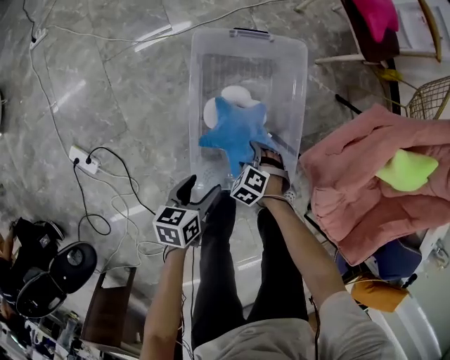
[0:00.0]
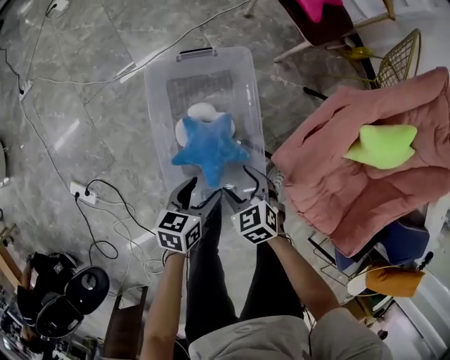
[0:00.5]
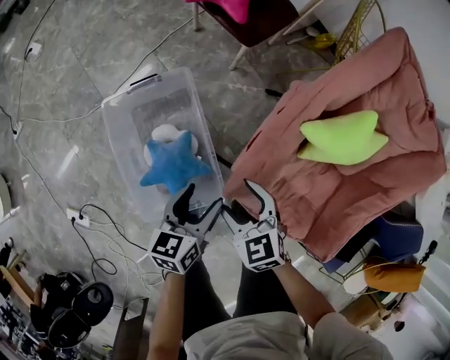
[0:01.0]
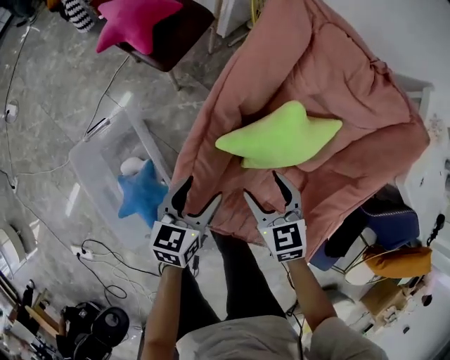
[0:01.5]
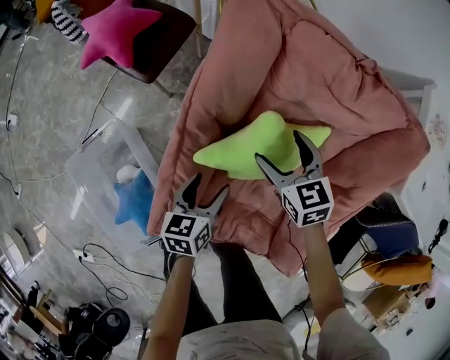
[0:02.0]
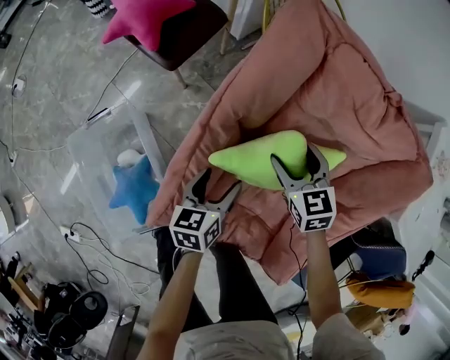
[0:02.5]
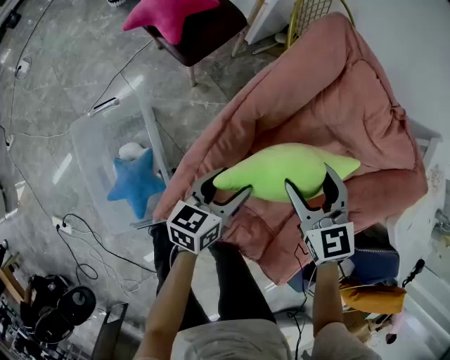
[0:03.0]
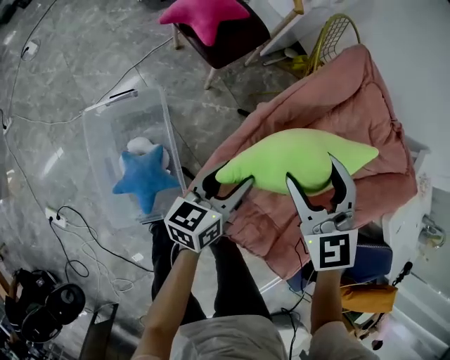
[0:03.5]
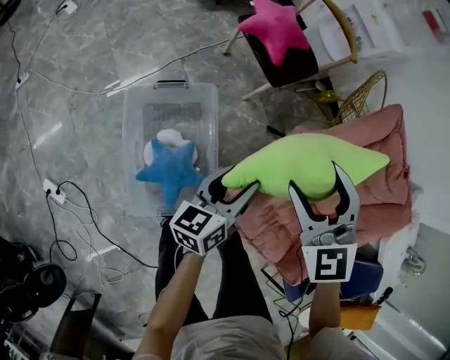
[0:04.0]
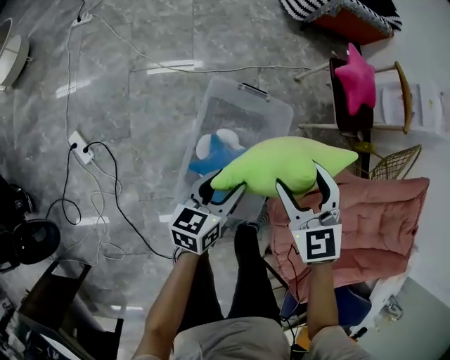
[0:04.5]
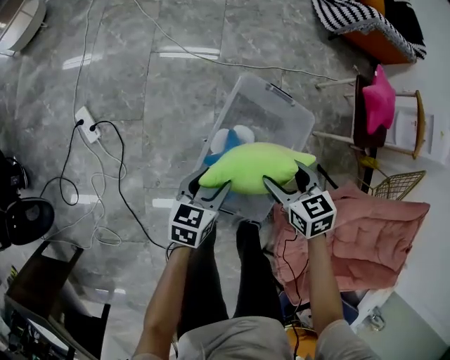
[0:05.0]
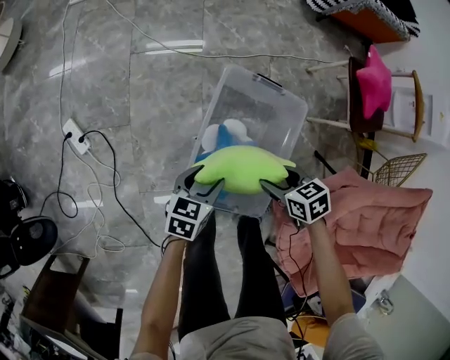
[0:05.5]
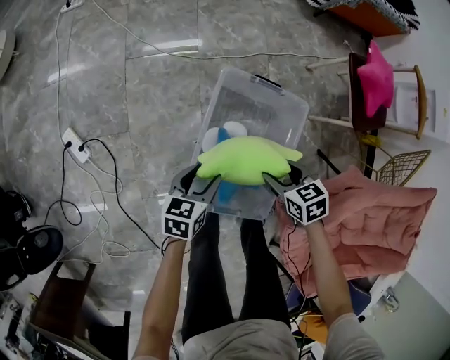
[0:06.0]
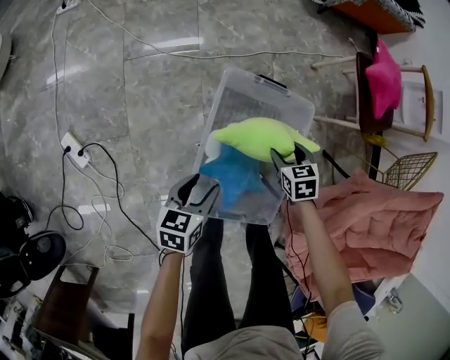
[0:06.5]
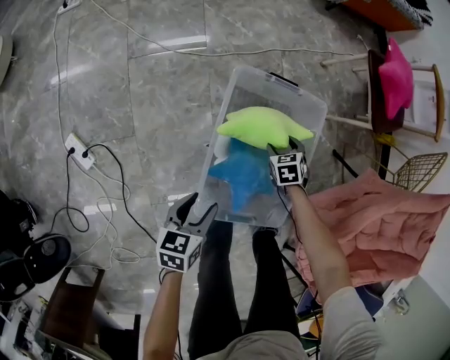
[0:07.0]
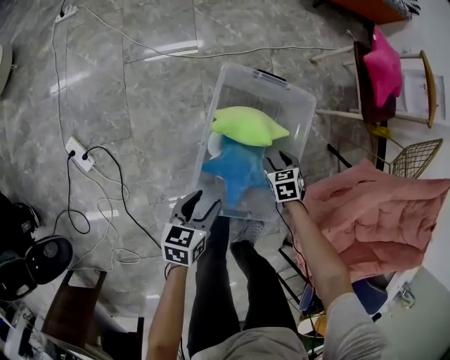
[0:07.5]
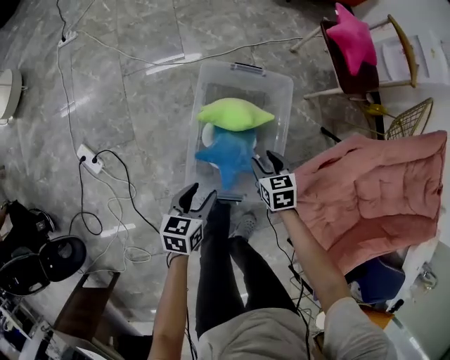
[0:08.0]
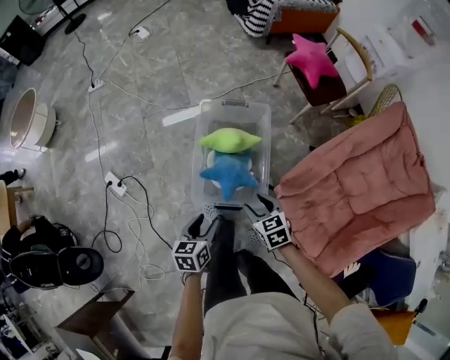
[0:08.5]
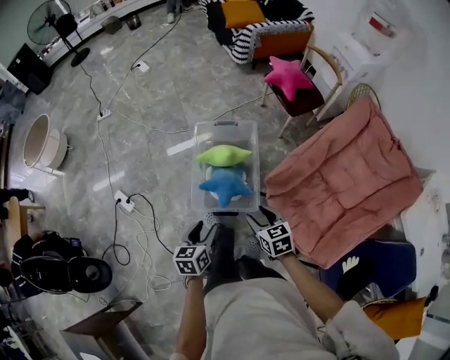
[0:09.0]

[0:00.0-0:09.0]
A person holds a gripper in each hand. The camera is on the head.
0:00.0 to 0:02.0: The pair of grippers is taken some 70 cm. The right gripper rotates around the line of its fingers by some 70 degrees, clockwise from behind, while the left gripper turns by about 30 degrees.
0:02.0 to 0:04.5: The pair of grippers is taken some 70 cm. The right gripper rotates around the line of its fingers by some 50 degrees, counterclockwise from behind; the left gripper rotates roughly 40 degrees.
0:04.5 to 0:07.0: The left gripper moves downward, about 20 cm, and rotates some 20 degrees, while the right gripper heads downward, covering about 40 cm, and changes its angle by about 40 degrees.
0:07.0 to 0:09.0: The left gripper travels upward, backward and to the right by approximately 40 cm. Meanwhile the right gripper shifts about 60 cm upward and backward, and turns by approximately 40 degrees.

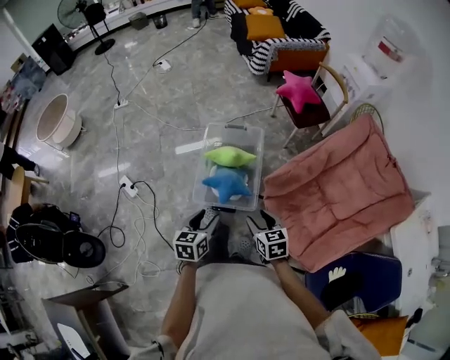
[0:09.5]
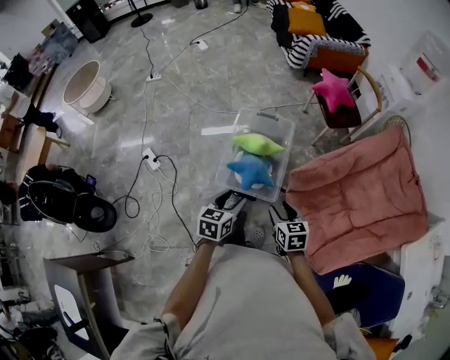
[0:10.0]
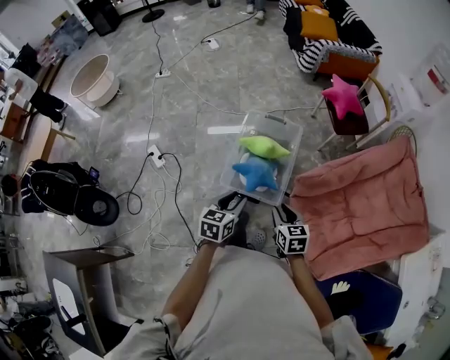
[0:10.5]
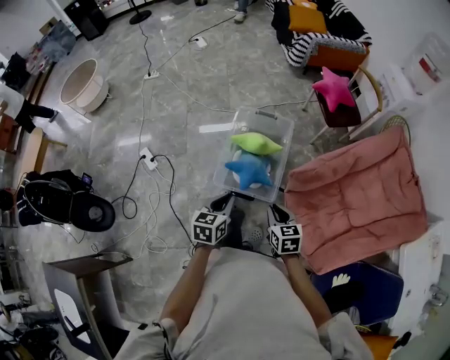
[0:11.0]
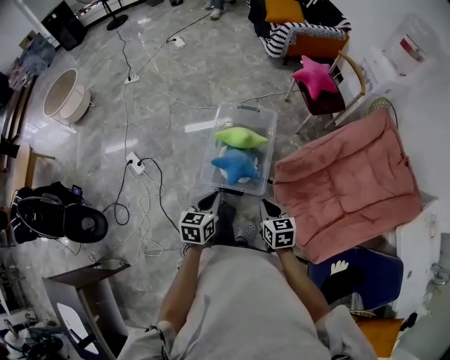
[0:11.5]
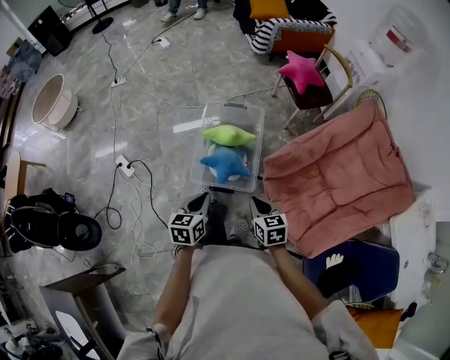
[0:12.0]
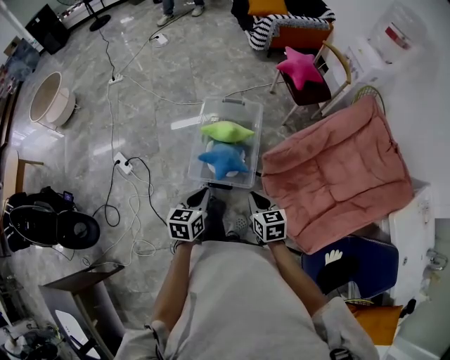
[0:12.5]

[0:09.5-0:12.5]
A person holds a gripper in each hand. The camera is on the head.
0:09.5 to 0:11.0: The left gripper closes up.
0:11.0 to 0:12.5: The grippers stay close to where they were, moving slightly.

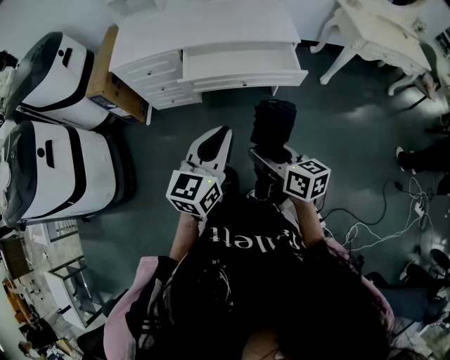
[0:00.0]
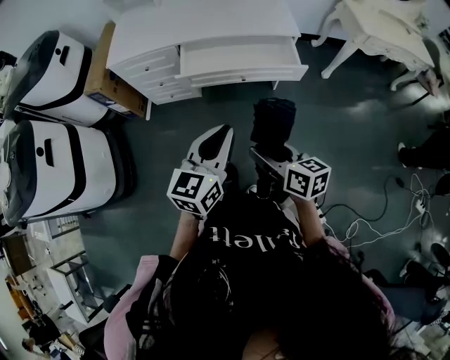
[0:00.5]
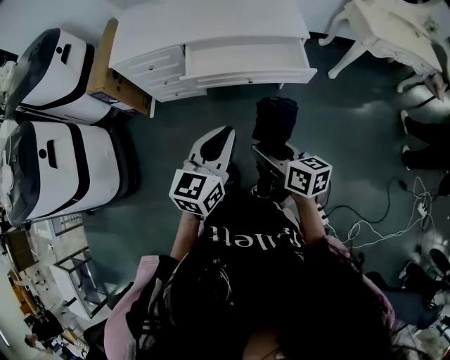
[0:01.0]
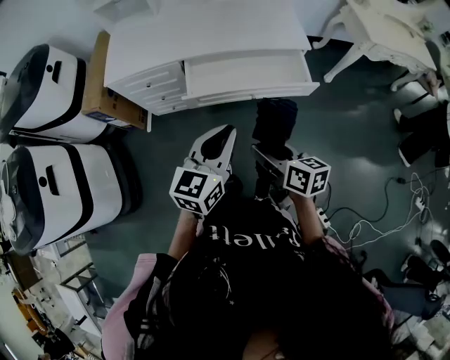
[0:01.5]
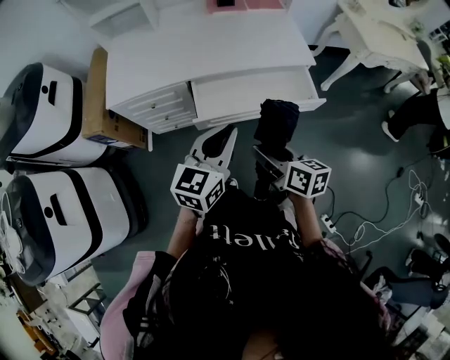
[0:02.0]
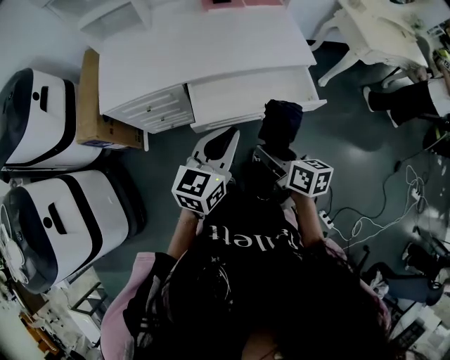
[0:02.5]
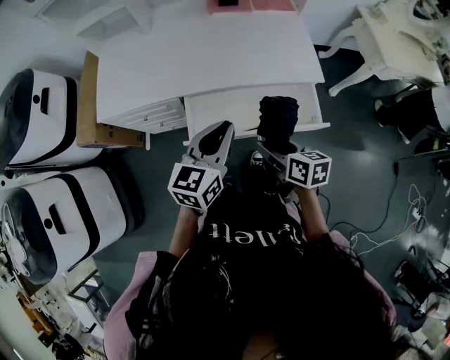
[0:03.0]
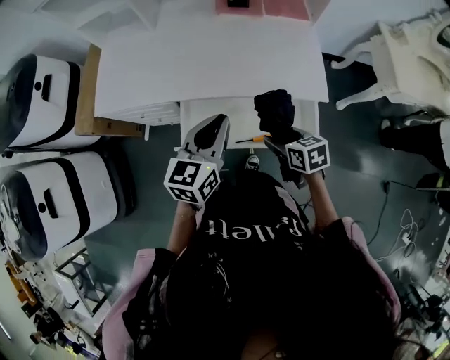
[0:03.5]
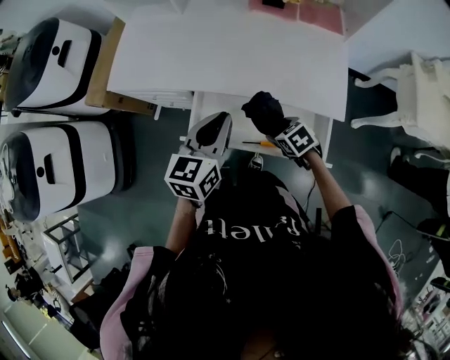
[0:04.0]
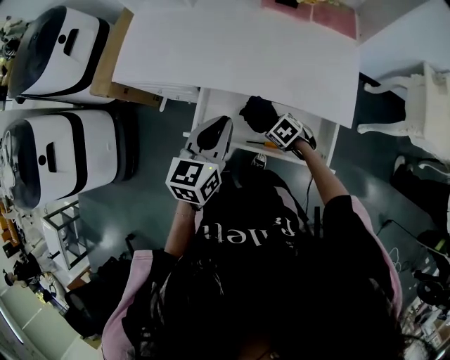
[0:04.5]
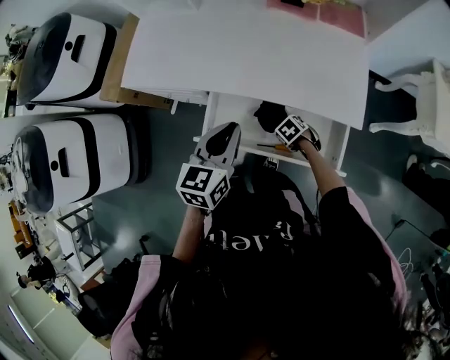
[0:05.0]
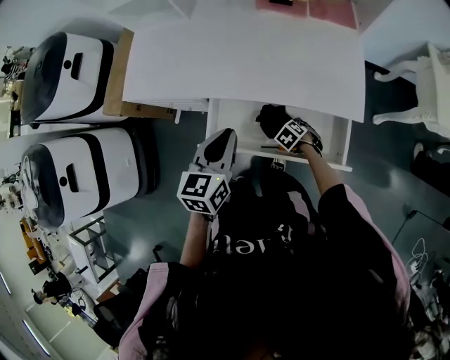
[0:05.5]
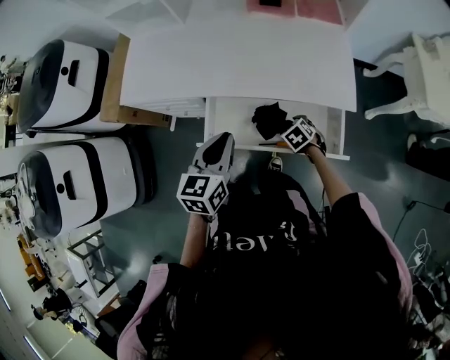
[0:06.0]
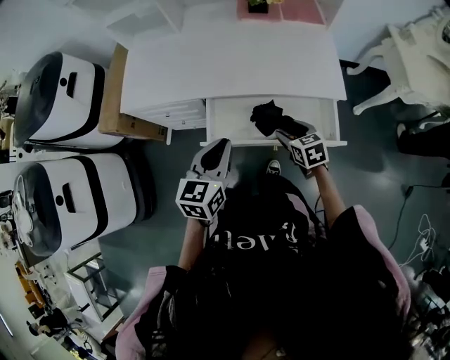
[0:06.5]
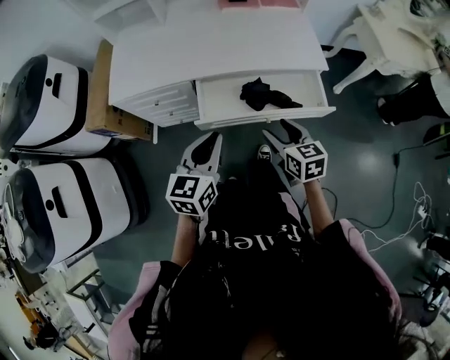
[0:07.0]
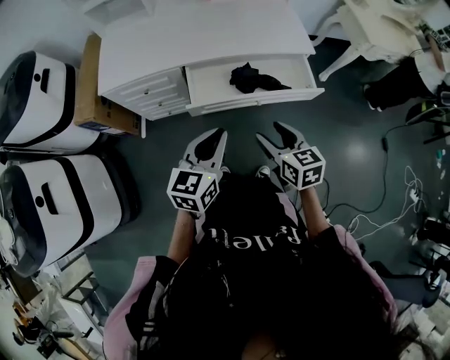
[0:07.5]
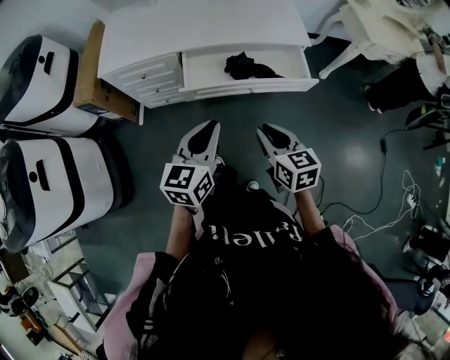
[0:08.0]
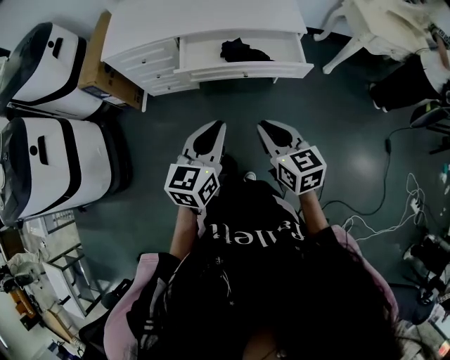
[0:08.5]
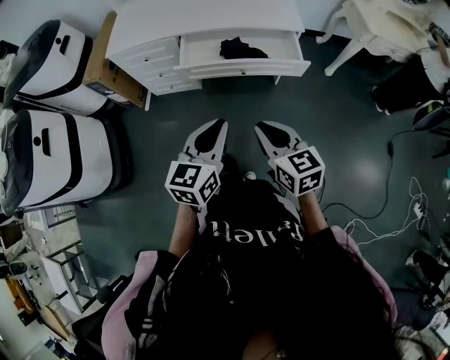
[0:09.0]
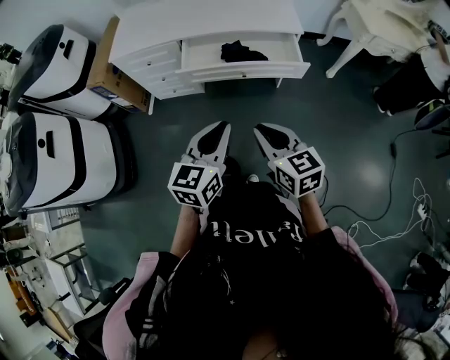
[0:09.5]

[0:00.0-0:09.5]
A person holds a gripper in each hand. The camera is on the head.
0:00.0 to 0:02.0: The grippers both shift forward by roughly 25 cm.
0:02.0 to 0:04.0: The left gripper changes place by roughly 25 cm, and rotates some 30 degrees, while the right gripper ends up roughly 35 cm from where it was, and tips its fingers downward by about 40 degrees.
0:04.0 to 0:05.5: The right gripper goes roughly 15 cm downward, and changes its angle by about 20 degrees.
0:05.5 to 0:07.5: The left gripper ends up about 30 cm from where it was, and changes its angle by some 30 degrees, while the right gripper shifts roughly 30 cm upward, and tips its fingers upward by about 50 degrees.
0:07.5 to 0:09.5: The right gripper moves backward, approximately 20 cm, and closes, while the left gripper goes roughly 25 cm backward and to the right.

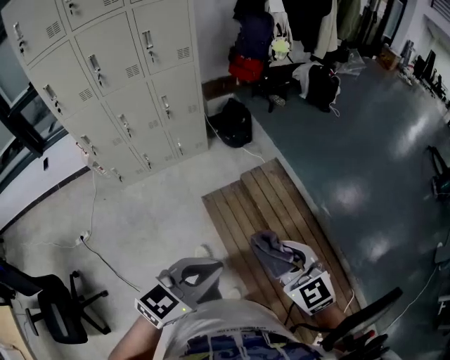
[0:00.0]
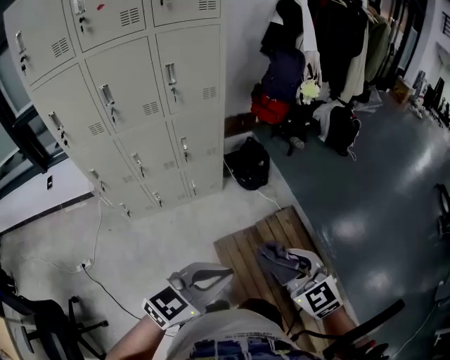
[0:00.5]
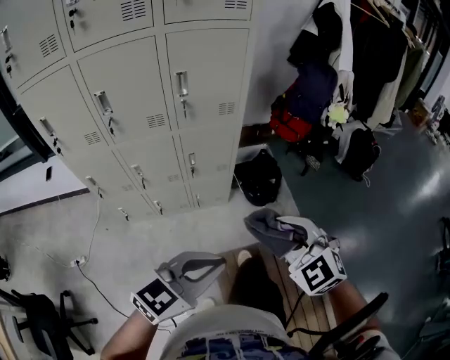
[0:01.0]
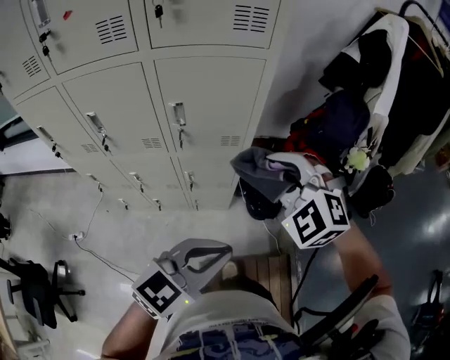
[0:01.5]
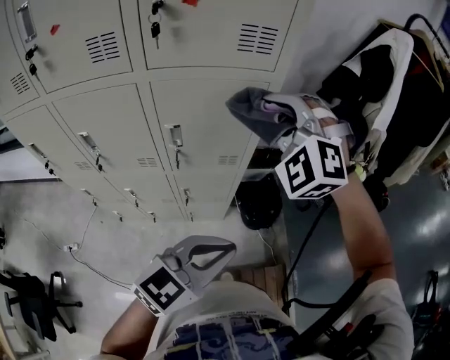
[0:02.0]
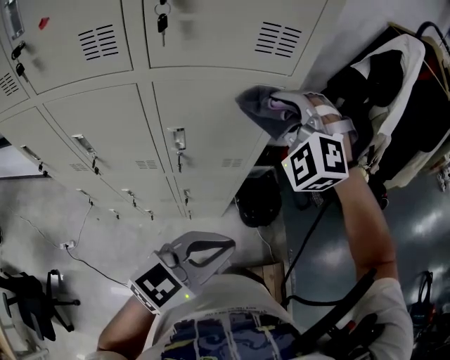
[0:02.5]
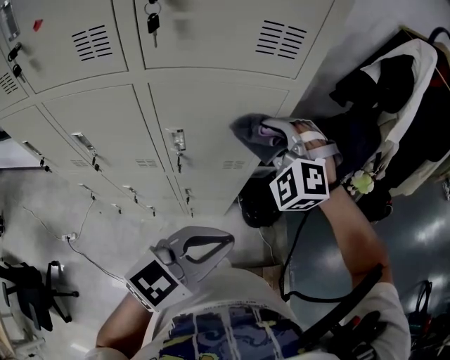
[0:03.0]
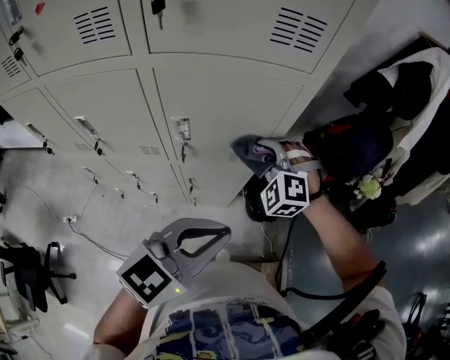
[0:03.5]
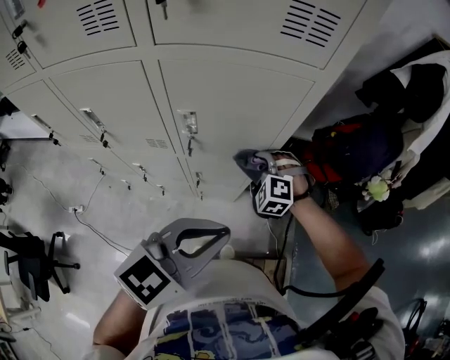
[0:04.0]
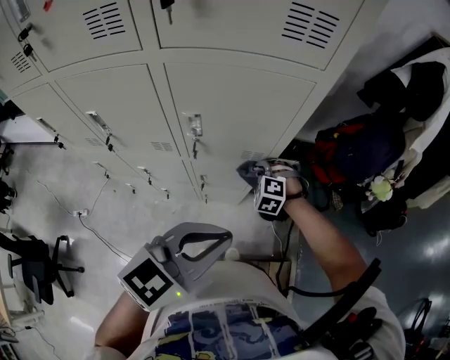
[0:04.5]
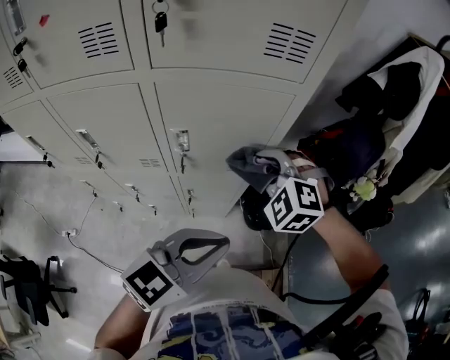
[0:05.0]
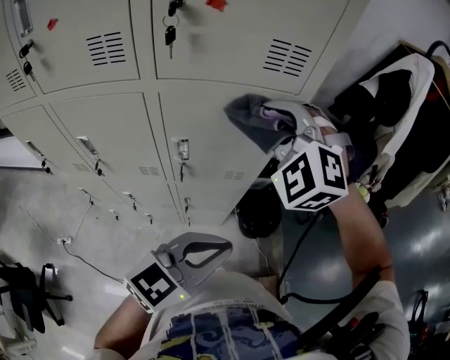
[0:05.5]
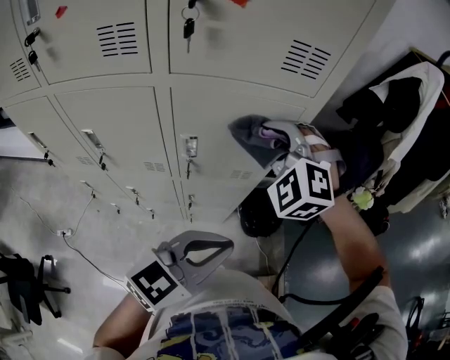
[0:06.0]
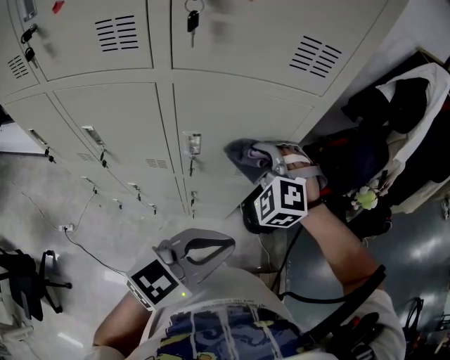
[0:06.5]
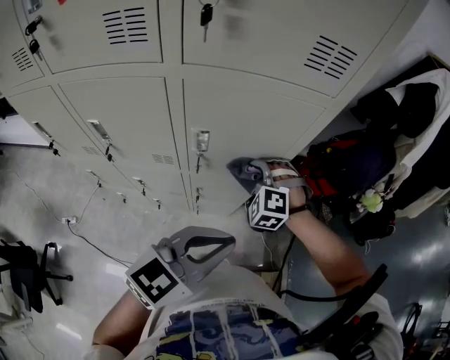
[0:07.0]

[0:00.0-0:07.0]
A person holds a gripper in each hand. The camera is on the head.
0:00.0 to 0:02.0: The pair of grippers is taken forward, approximately 80 cm. The right gripper twists approximately 70 degrees counterclockwise, seen from behind.
0:02.0 to 0:03.5: The left gripper is displaced forward by some 5 cm. The right gripper travels downward by roughly 20 cm.
0:03.5 to 0:05.0: The right gripper moves some 20 cm downward and comes back.
0:05.0 to 0:07.0: The right gripper heads downward, covering roughly 10 cm.
